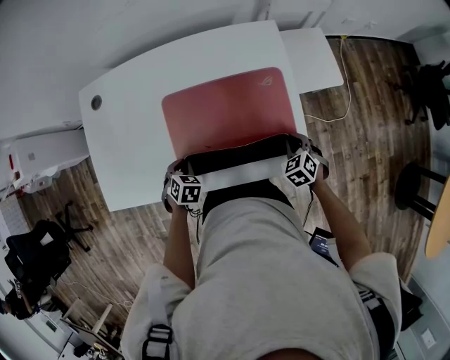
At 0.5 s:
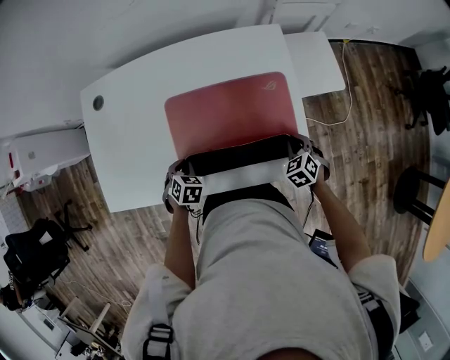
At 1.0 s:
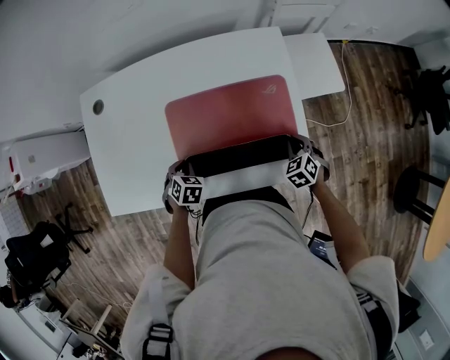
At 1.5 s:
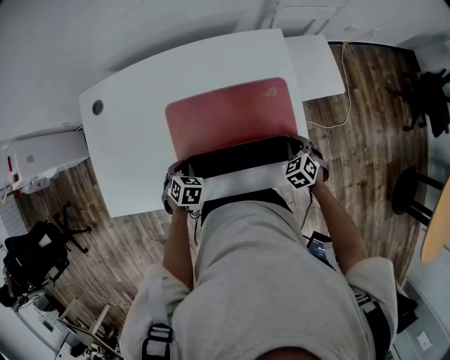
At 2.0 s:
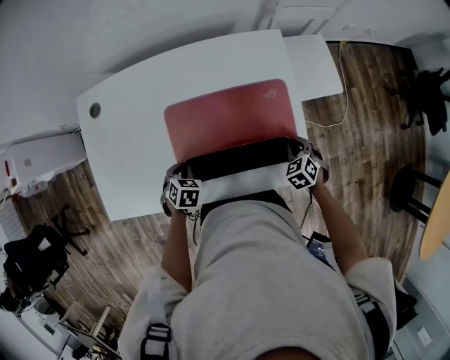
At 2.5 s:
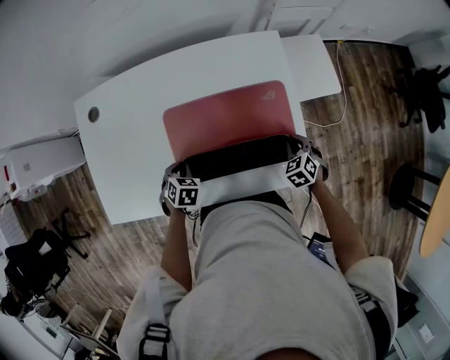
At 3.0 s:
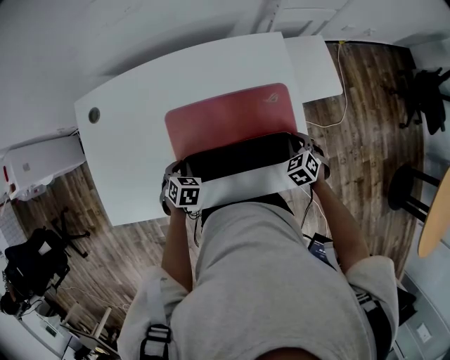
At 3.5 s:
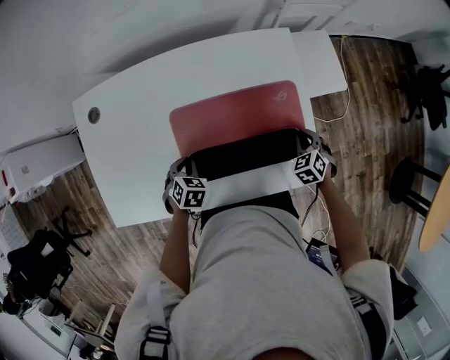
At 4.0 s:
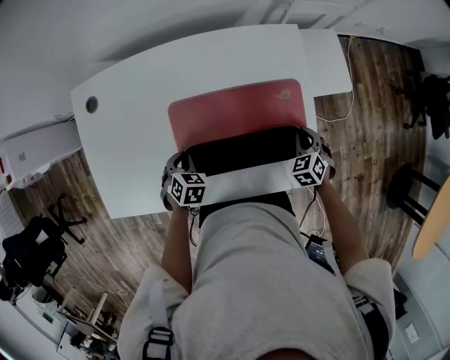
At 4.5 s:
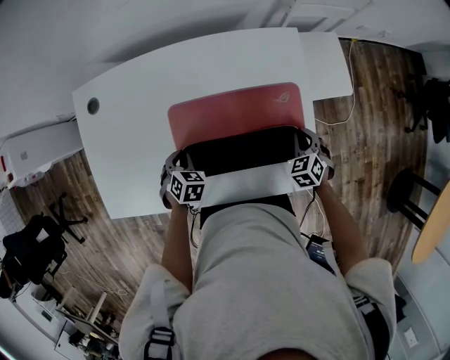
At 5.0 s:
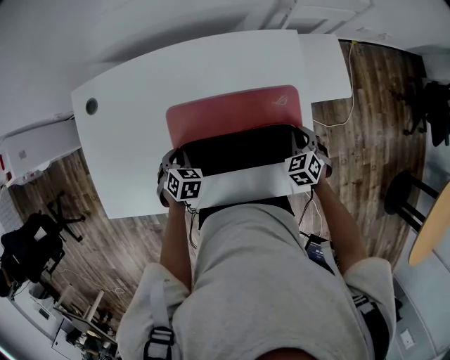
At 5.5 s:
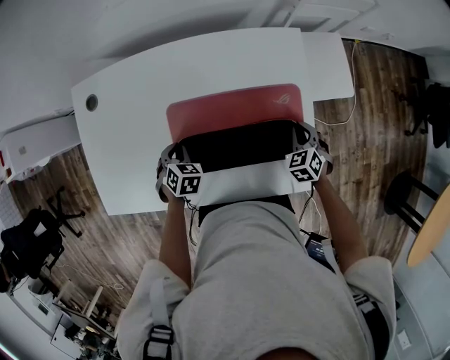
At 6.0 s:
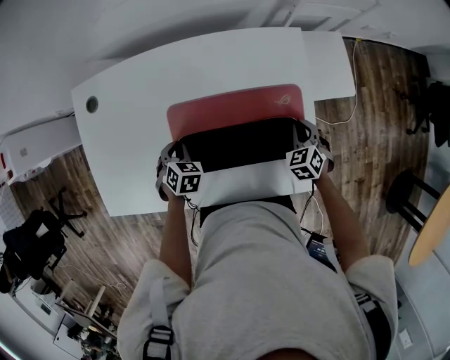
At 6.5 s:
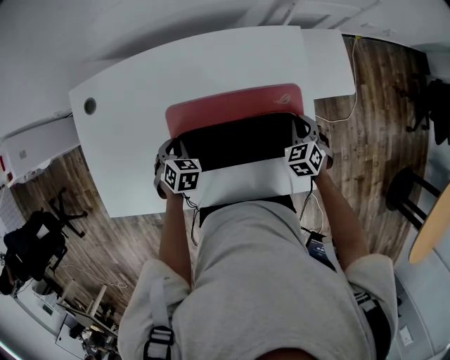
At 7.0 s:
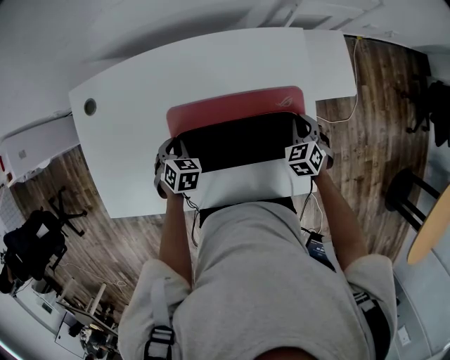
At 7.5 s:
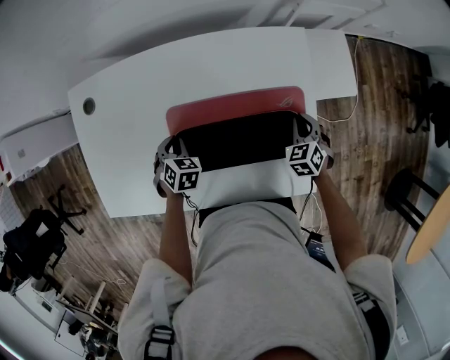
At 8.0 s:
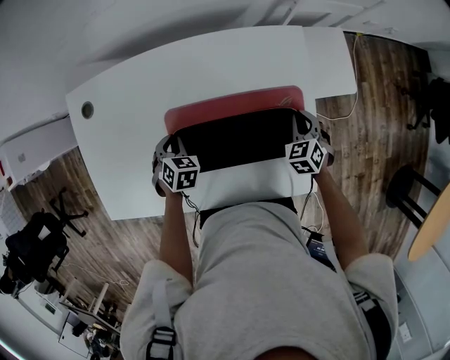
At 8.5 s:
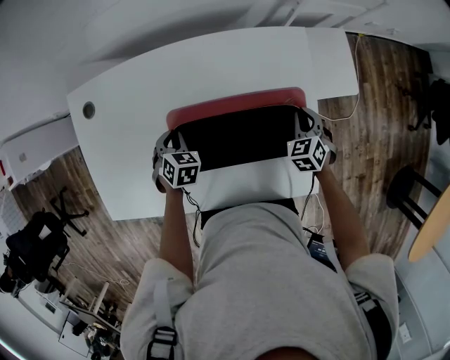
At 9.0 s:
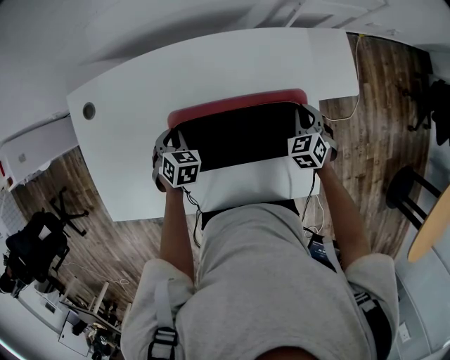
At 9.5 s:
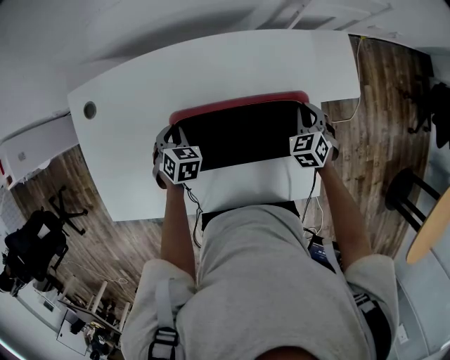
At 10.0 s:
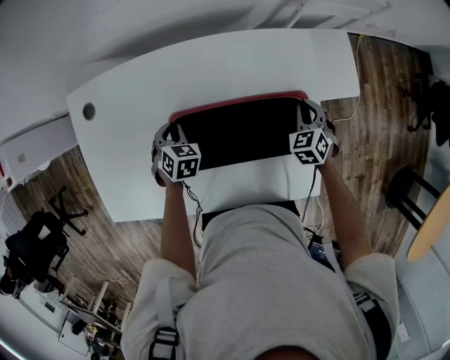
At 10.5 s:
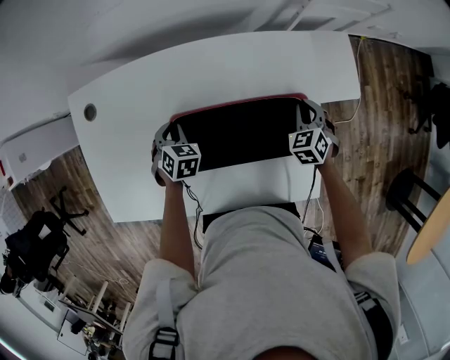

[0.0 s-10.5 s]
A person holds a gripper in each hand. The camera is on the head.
0.0 to 2.0 s: The grippers make only small movements.
2.0 to 4.0 s: The grippers make only small movements.
4.0 to 6.5 s: Both grippers move forward, roughly 5 cm.
6.5 to 8.5 s: There are only small adjustments of the grippers.
8.5 to 10.5 s: The grippers make only small movements.

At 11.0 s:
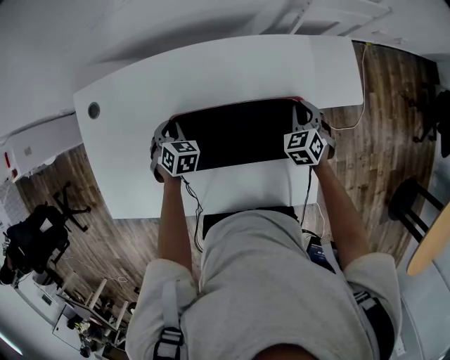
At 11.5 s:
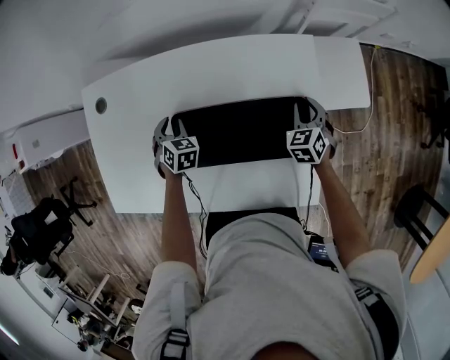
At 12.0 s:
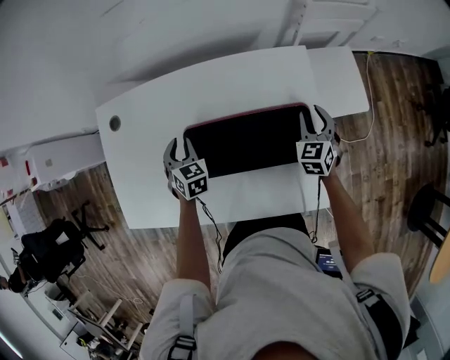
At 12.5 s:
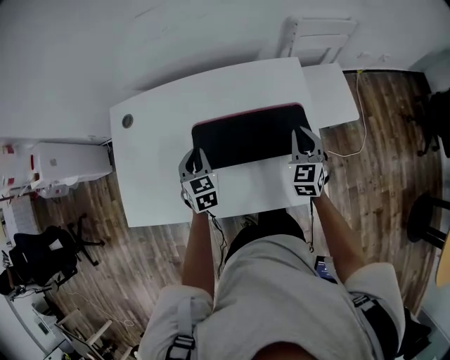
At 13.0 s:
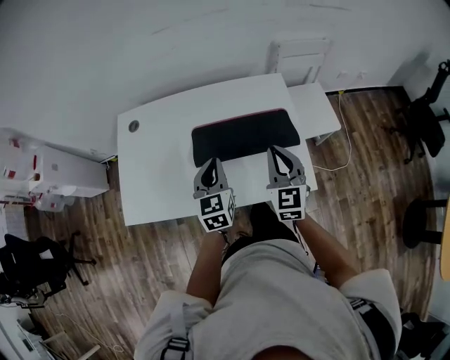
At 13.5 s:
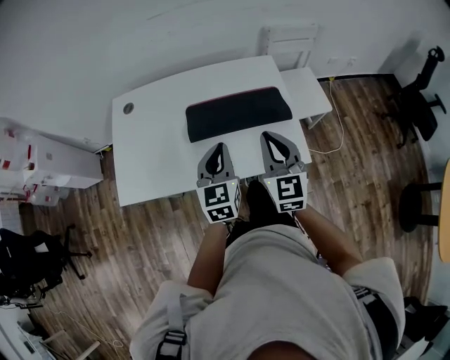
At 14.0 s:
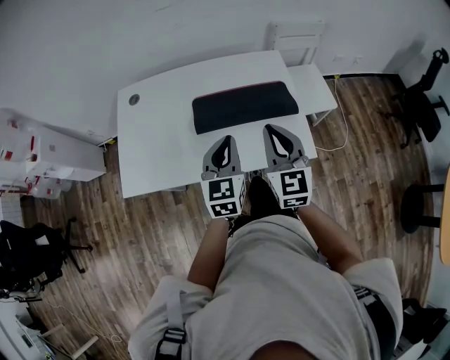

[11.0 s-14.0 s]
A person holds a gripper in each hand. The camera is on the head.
11.0 to 12.5 s: The left gripper heads upward and backward, covering some 15 cm, and turns by approximately 30 degrees; the right gripper is displaced upward, backward and to the left by roughly 15 cm, swivels about 30 degrees, and opens and closes again.
12.5 to 14.0 s: The right gripper goes approximately 30 cm backward, upward and to the left, and swivels approximately 20 degrees, while the left gripper travels backward, upward and to the right by about 25 cm, and rotates about 30 degrees.

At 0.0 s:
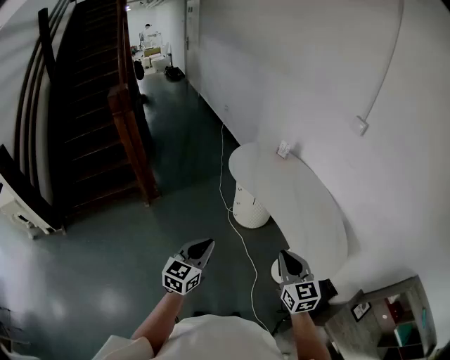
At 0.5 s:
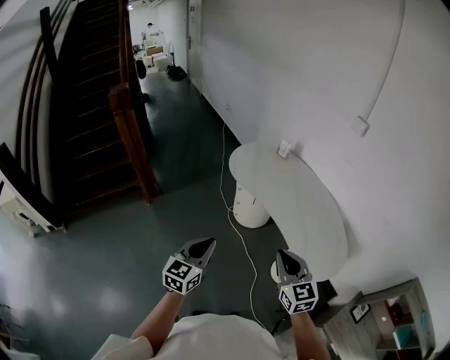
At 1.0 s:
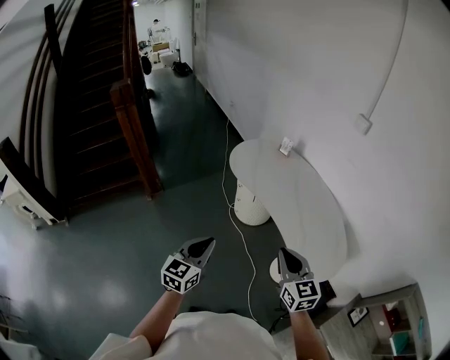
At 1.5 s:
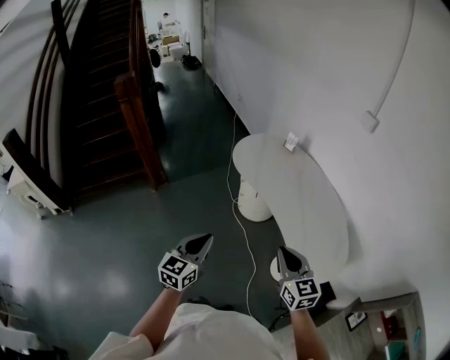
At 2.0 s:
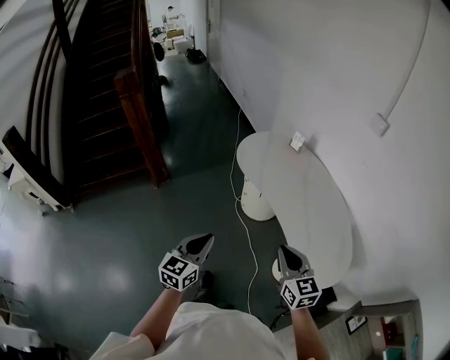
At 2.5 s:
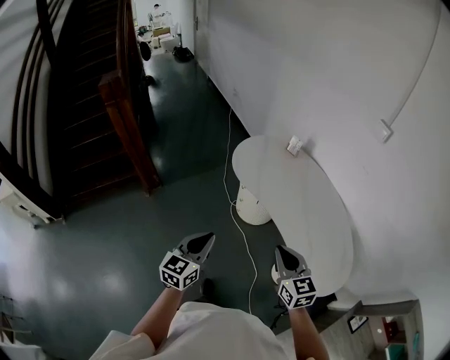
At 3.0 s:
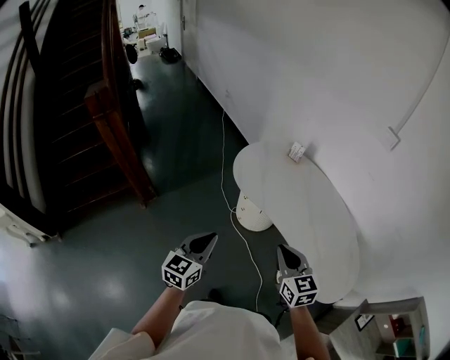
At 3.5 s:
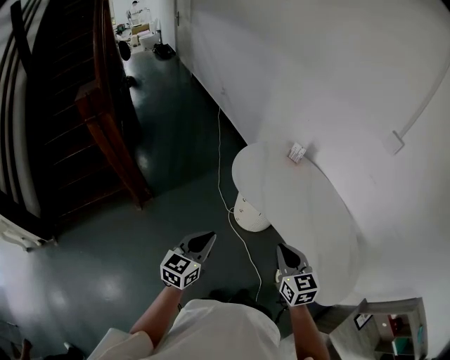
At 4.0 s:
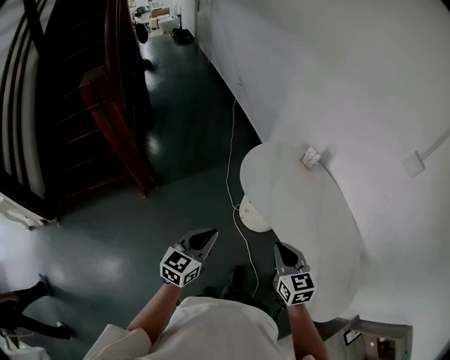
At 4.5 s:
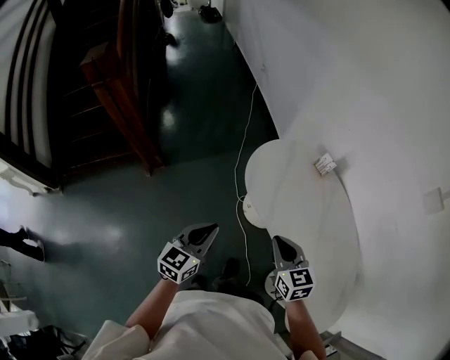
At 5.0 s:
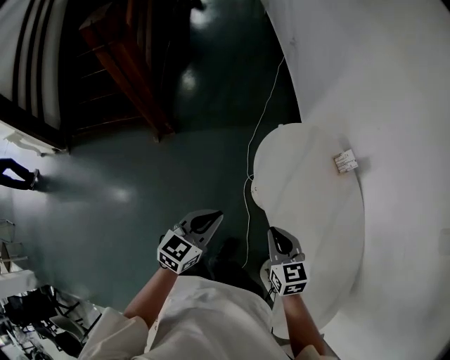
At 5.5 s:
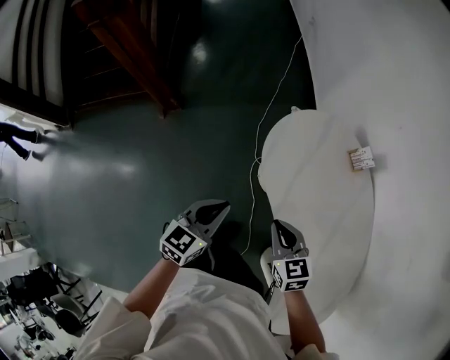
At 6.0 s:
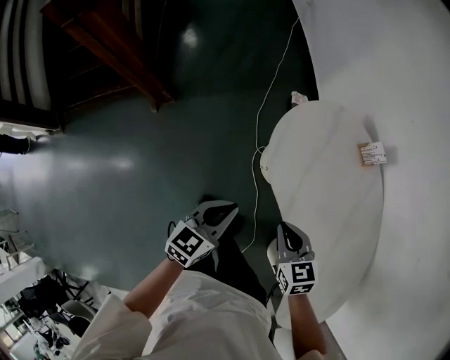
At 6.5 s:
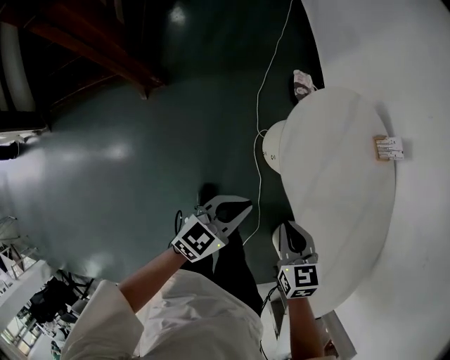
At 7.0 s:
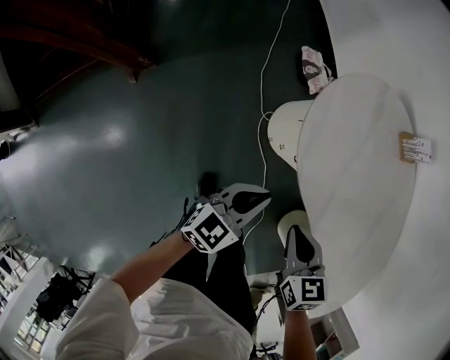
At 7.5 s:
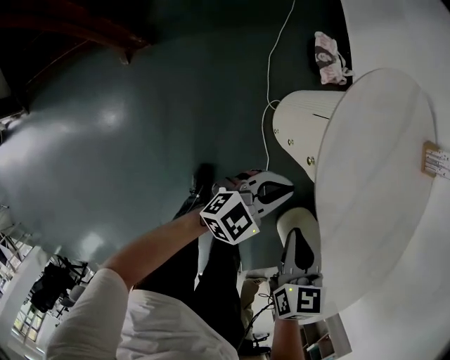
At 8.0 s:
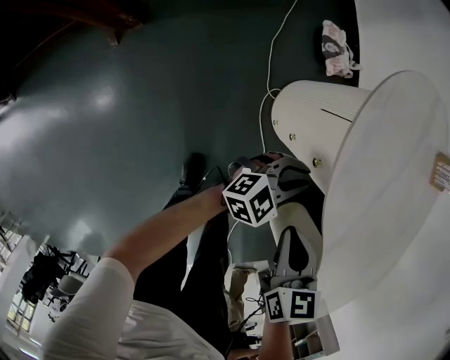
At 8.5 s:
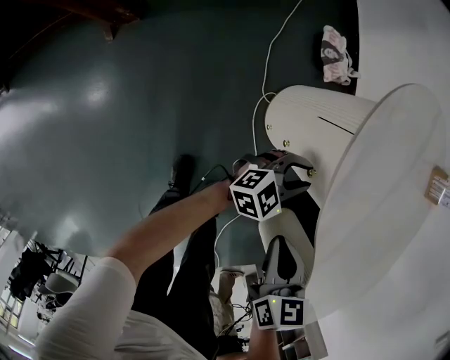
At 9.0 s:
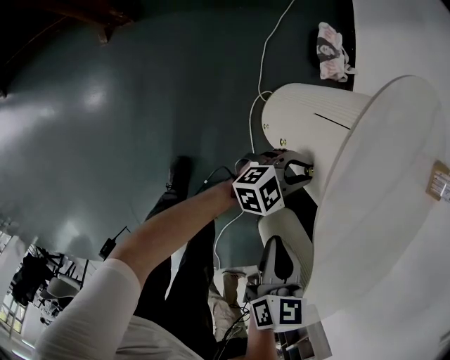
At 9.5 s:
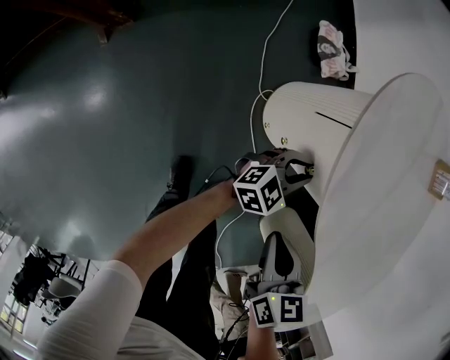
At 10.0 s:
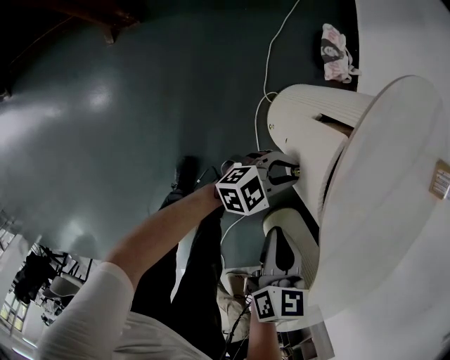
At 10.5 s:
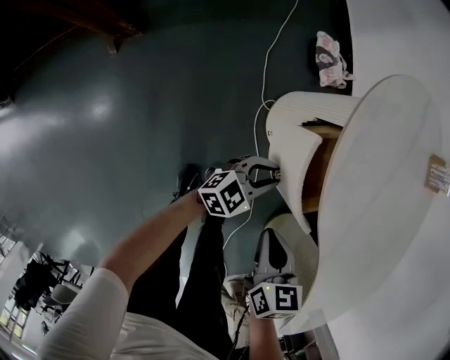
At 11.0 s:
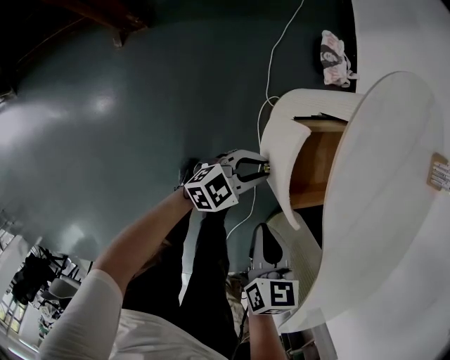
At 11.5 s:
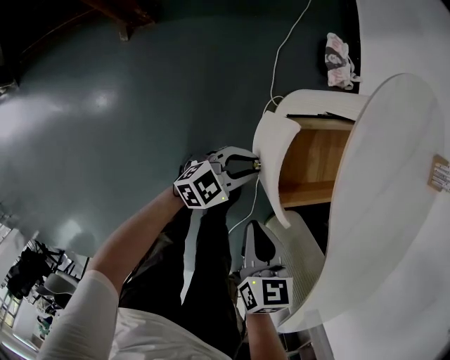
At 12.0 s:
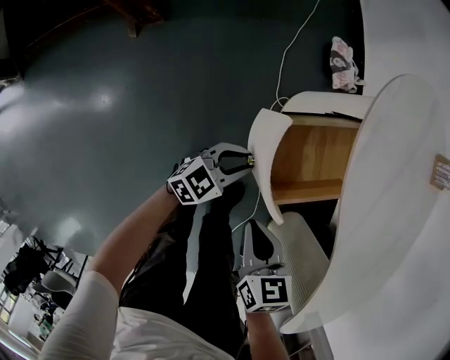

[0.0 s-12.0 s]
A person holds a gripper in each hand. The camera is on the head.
0.0 to 2.0 s: The left gripper travels to the right by about 5 cm; the right gripper moves forward, approximately 5 cm.
2.0 to 4.0 s: The right gripper heads forward and to the left, covering roughly 30 cm. Meanwhile the left gripper goes some 30 cm forward.
4.0 to 6.0 s: The right gripper heads forward and downward, covering some 30 cm, and turns by roughly 20 degrees. Meanwhile the left gripper shifts roughly 25 cm downward and forward.
6.0 to 8.0 s: The left gripper goes about 35 cm downward, rotates roughly 30 degrees, and opens up, while the right gripper moves downward, roughly 20 cm, and rotates some 20 degrees.
8.0 to 10.0 s: The left gripper heads downward, covering about 5 cm.
10.0 to 12.0 s: The right gripper heads backward and to the left, covering about 10 cm. Meanwhile the left gripper heads to the left and backward, covering roughly 20 cm.

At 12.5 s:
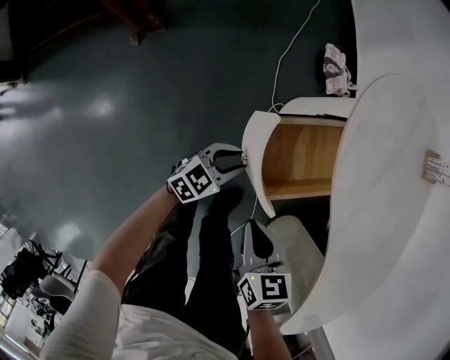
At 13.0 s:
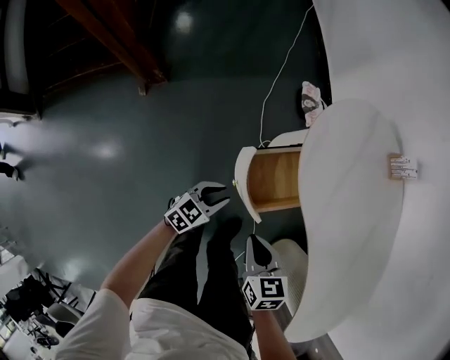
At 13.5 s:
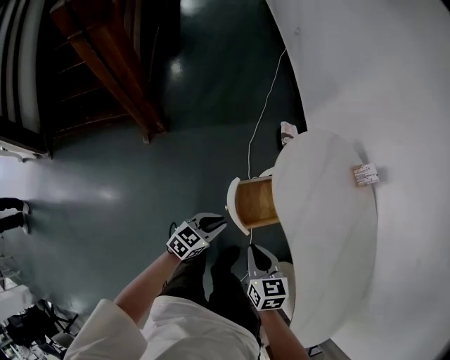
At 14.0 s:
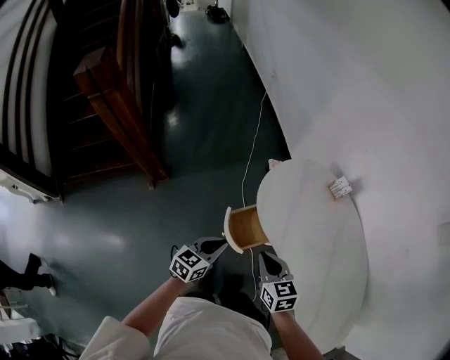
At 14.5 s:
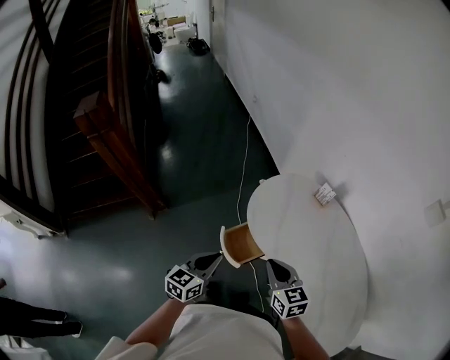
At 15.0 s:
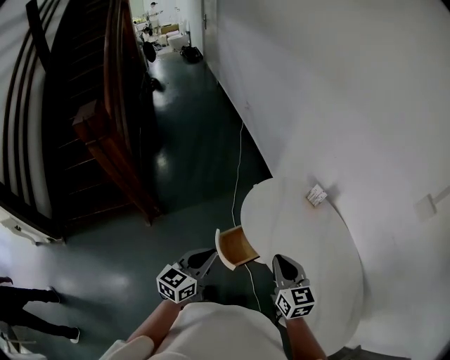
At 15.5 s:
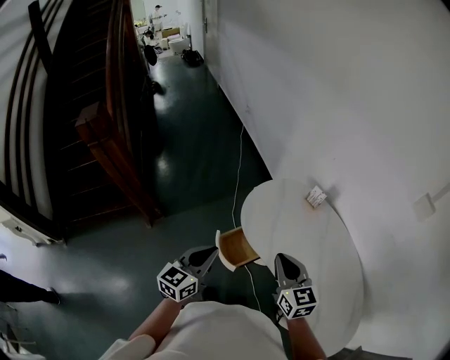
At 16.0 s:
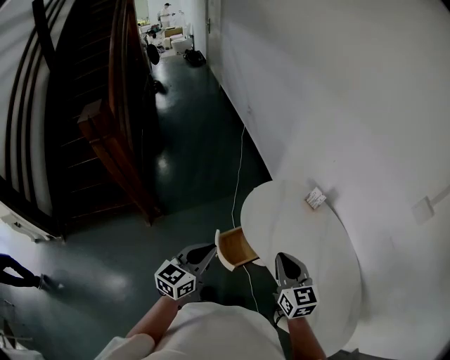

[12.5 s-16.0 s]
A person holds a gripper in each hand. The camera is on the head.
12.5 to 14.5 s: The two grippers go approximately 50 cm upward. The left gripper closes its fingers; the right gripper swivels approximately 30 degrees.
14.5 to 16.0 s: Both grippers travel together upward, about 10 cm.
